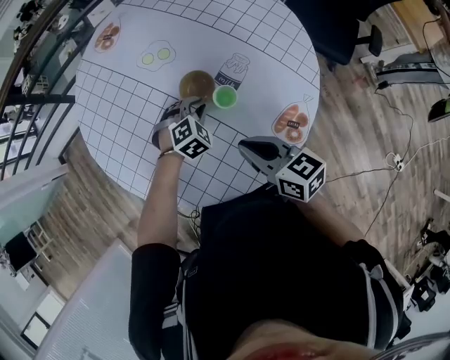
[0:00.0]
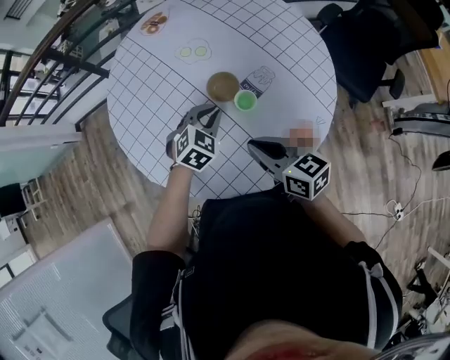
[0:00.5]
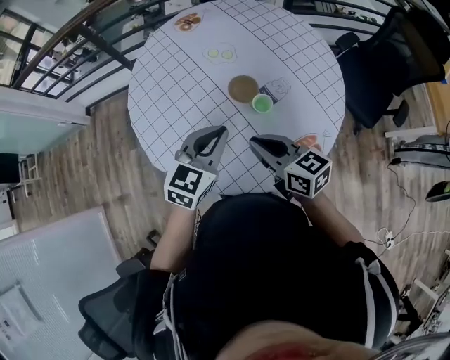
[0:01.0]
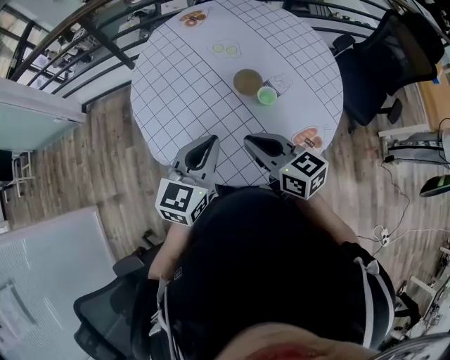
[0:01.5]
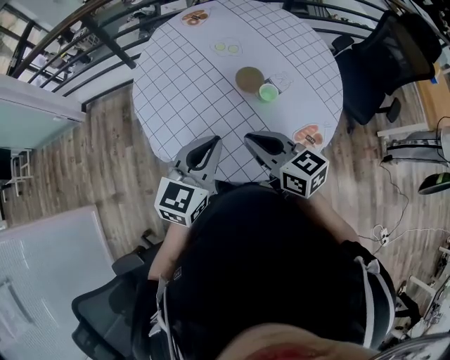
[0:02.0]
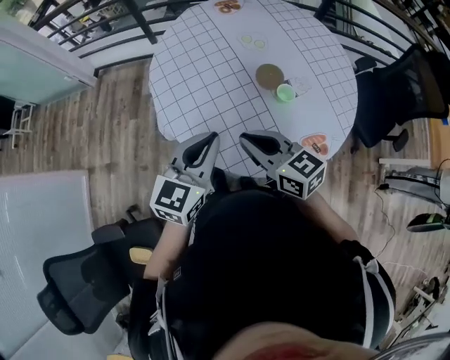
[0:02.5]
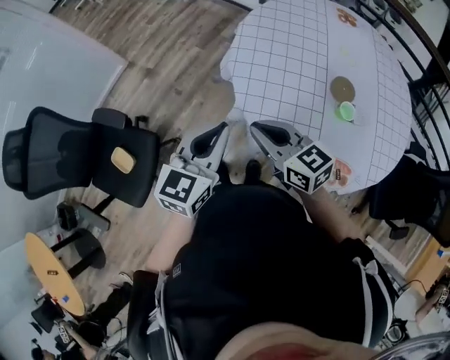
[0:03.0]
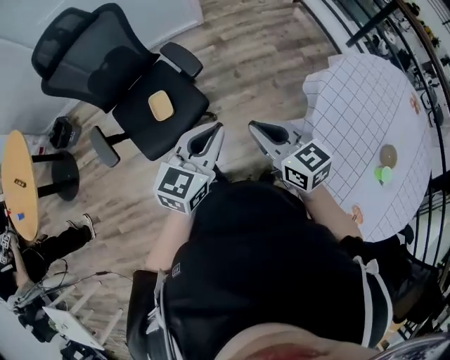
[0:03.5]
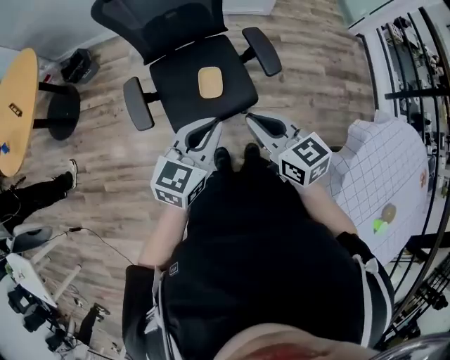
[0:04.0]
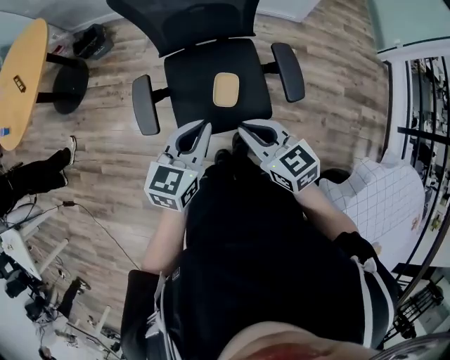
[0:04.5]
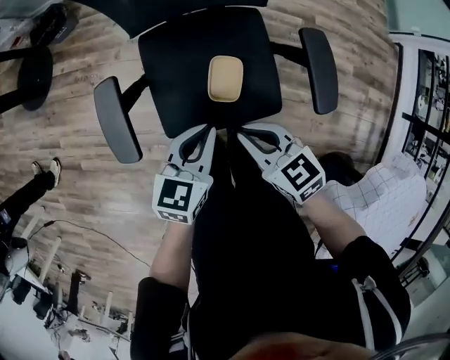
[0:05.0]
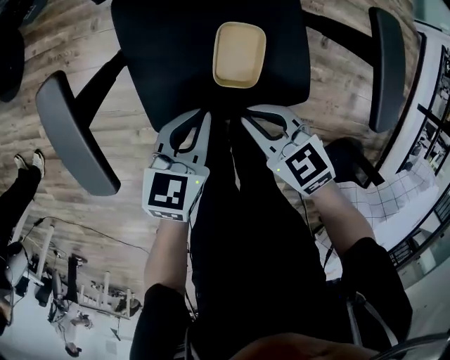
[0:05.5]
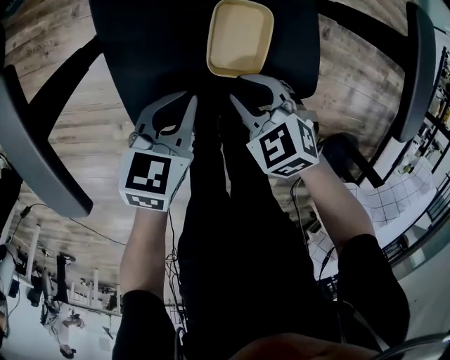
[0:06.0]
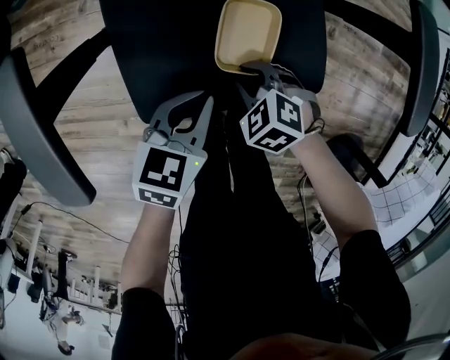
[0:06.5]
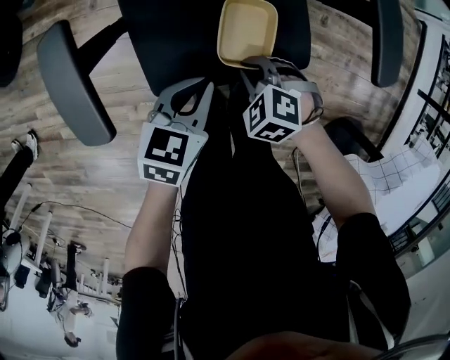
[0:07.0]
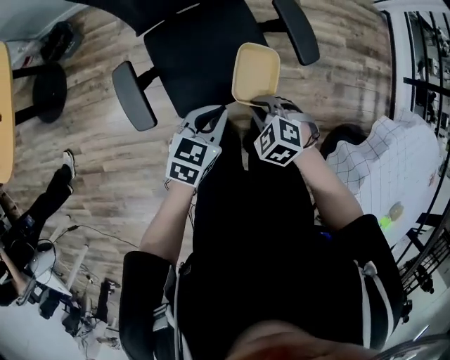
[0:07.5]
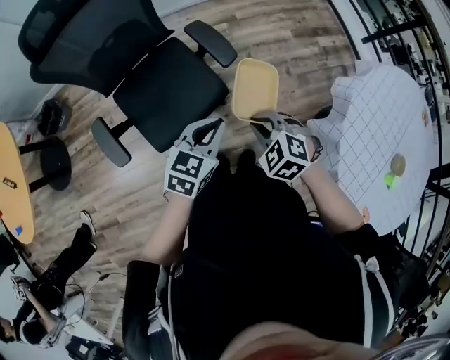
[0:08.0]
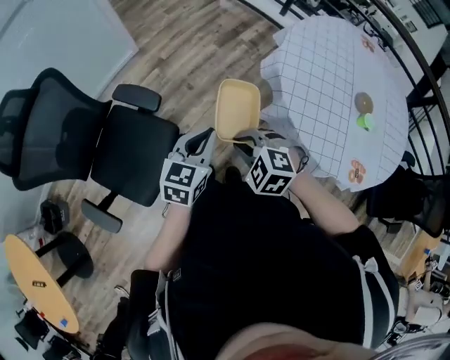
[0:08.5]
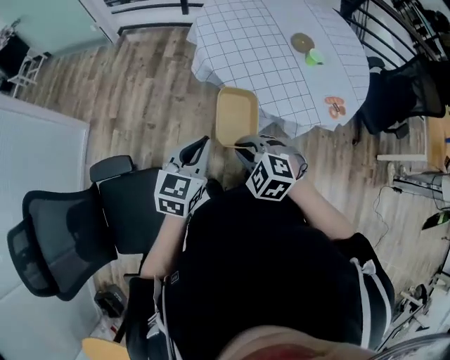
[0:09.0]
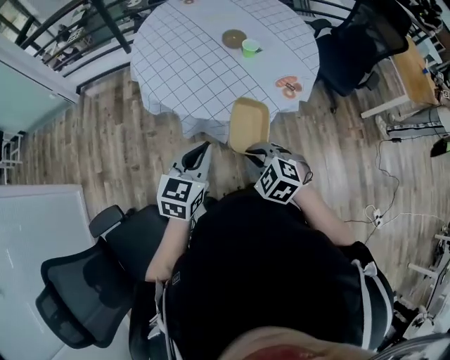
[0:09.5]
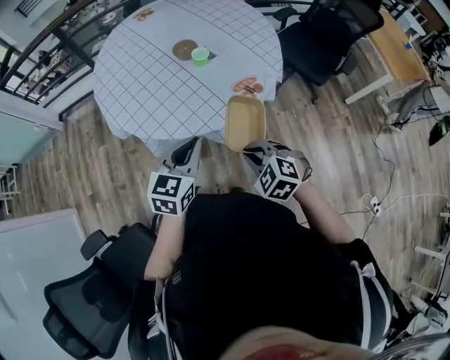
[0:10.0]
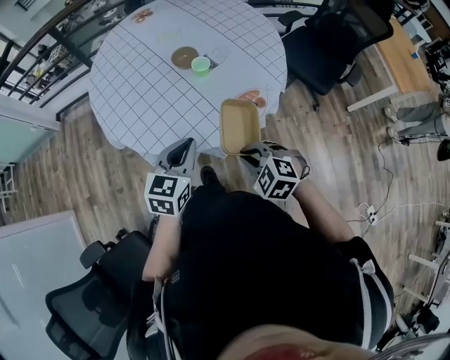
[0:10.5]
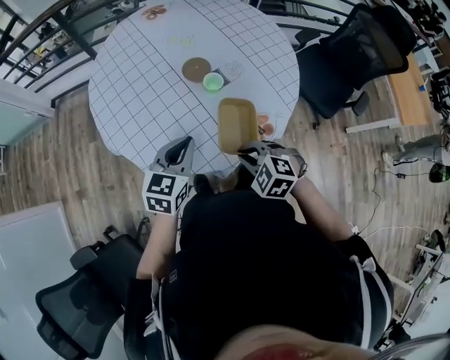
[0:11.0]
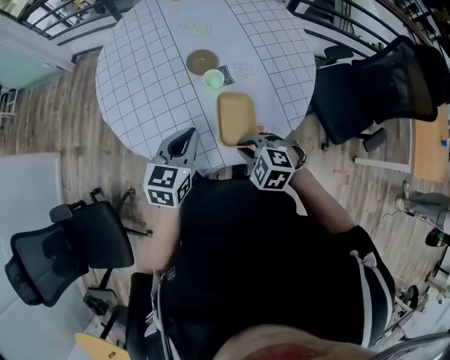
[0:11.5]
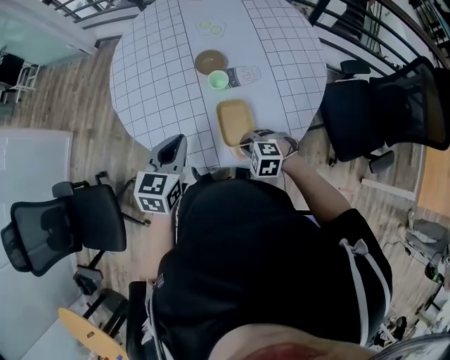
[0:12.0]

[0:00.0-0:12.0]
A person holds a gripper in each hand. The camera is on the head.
0:00.0 to 0:02.0: The right gripper shifts roughly 15 cm to the left, upward and backward, and changes its angle by approximately 20 degrees. The left gripper heads upward, backward and to the left, covering some 35 cm, and angles its fingers upward, by about 40 degrees.
0:02.0 to 0:04.0: The two grippers travel together, roughly 60 cm. The right gripper turns by approximately 100 degrees; the left gripper rotates some 100 degrees.
0:04.0 to 0:06.0: The two grippers go about 50 cm downward. The left gripper swivels roughly 30 degrees; the right gripper tips its fingers downward by about 40 degrees.
0:06.0 to 0:08.0: Both grippers travel together upward, some 40 cm. The right gripper turns by some 30 degrees, while the left gripper swivels some 40 degrees.
0:08.0 to 0:10.0: The pair of grippers is taken some 50 cm. The right gripper rotates around the line of its fingers by approximately 70 degrees, clockwise from behind. The left gripper changes its angle by about 80 degrees.
0:10.0 to 0:12.0: The right gripper moves some 30 cm, and rotates roughly 50 degrees. The left gripper shifts by roughly 20 cm, and changes its angle by about 40 degrees.

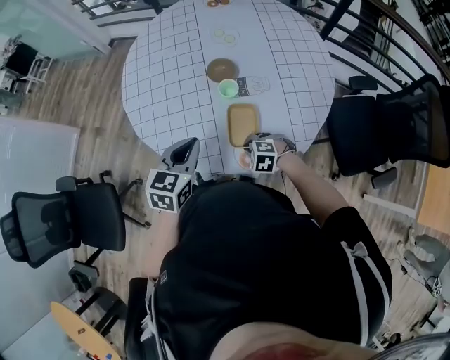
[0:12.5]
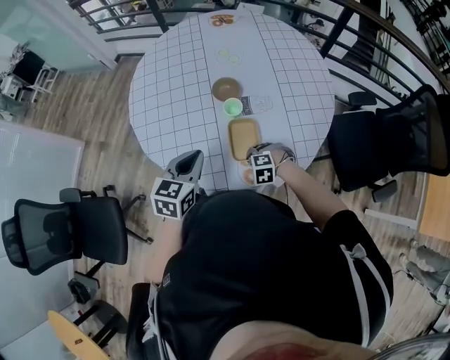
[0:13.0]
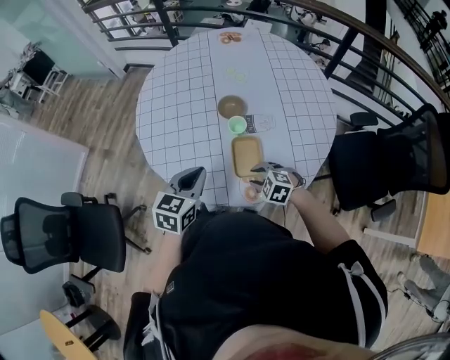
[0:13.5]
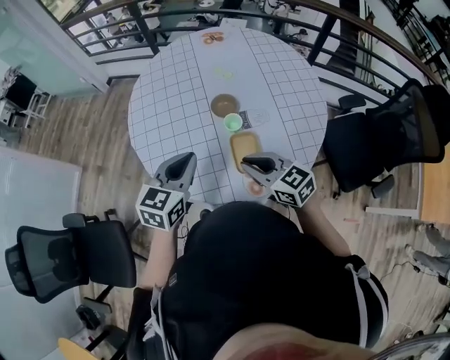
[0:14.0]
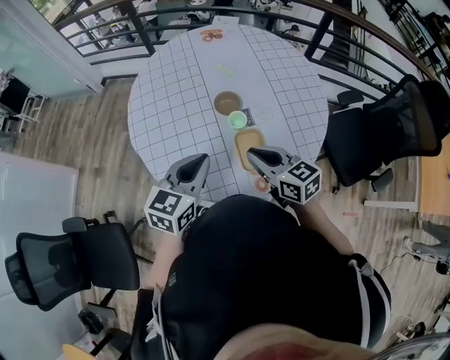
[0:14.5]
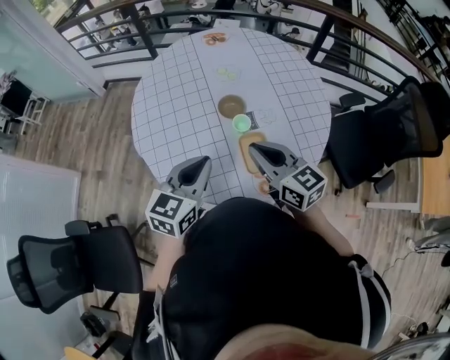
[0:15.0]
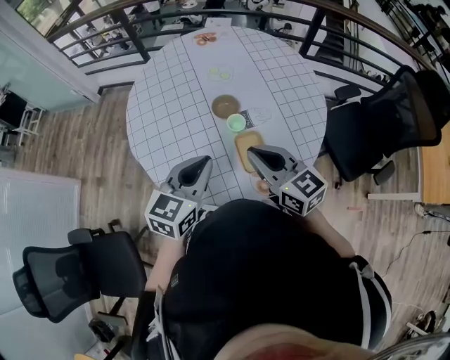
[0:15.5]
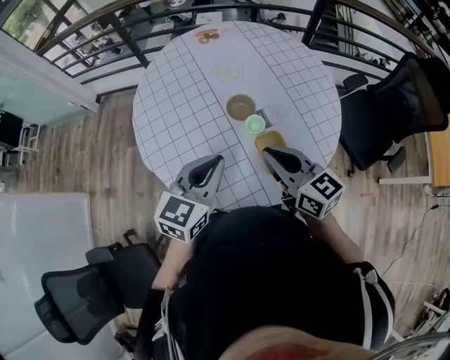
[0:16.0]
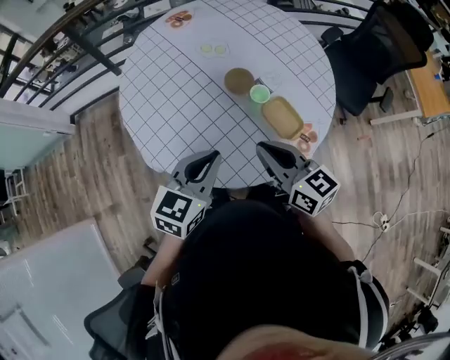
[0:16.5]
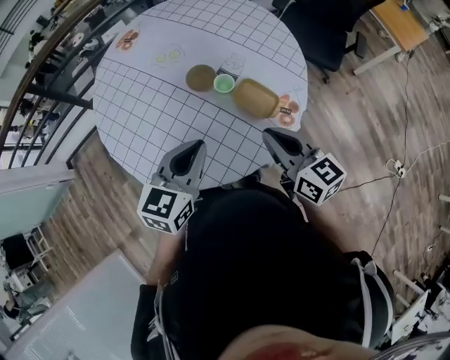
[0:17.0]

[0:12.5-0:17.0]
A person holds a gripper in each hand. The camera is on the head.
0:12.5 to 0:14.5: The right gripper travels upward by approximately 25 cm, tips its fingers upward by some 50 degrees, and opens and closes again. Meanwhile the left gripper shifts approximately 10 cm upward.
0:14.5 to 0:17.0: The left gripper moves about 10 cm, and turns by approximately 40 degrees. The right gripper rotates approximately 50 degrees.

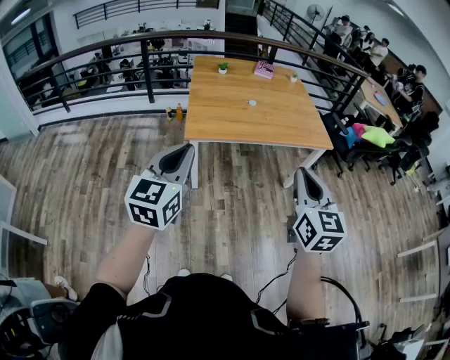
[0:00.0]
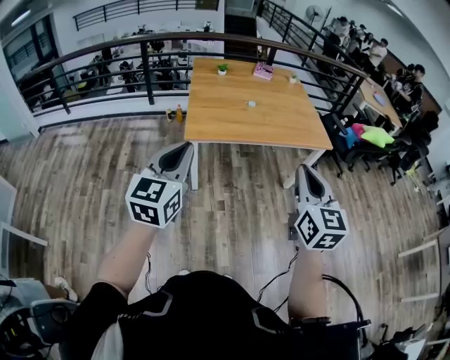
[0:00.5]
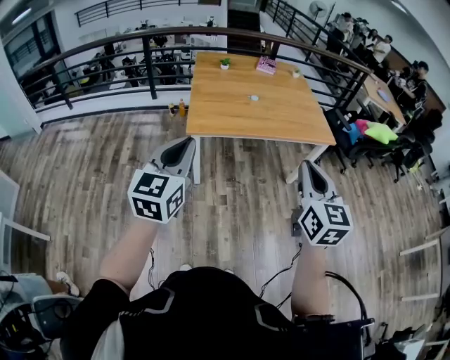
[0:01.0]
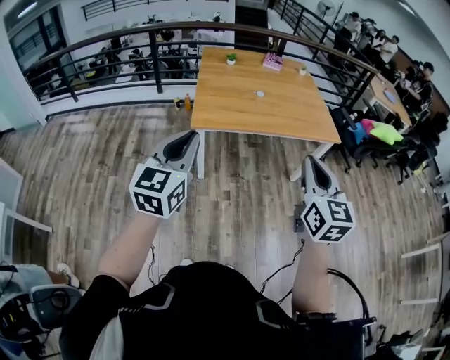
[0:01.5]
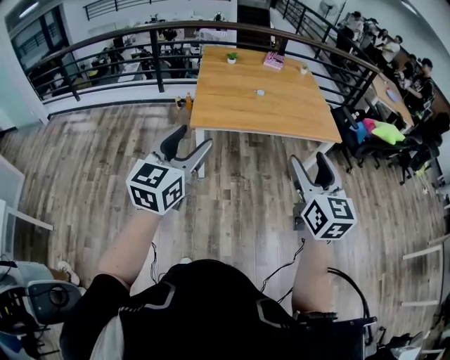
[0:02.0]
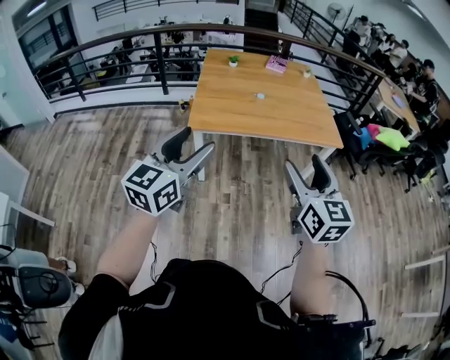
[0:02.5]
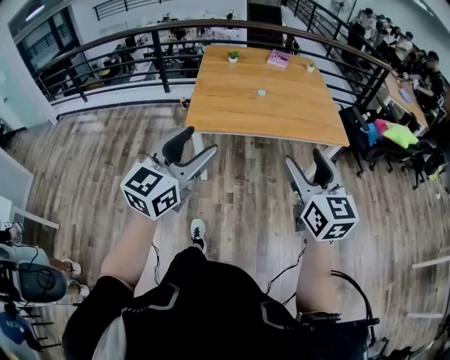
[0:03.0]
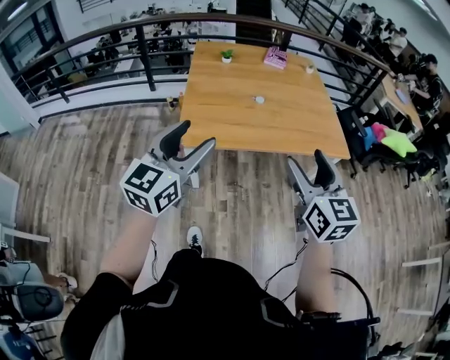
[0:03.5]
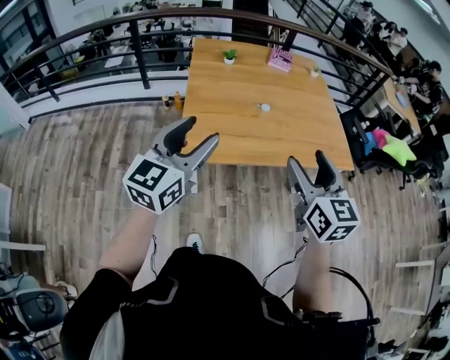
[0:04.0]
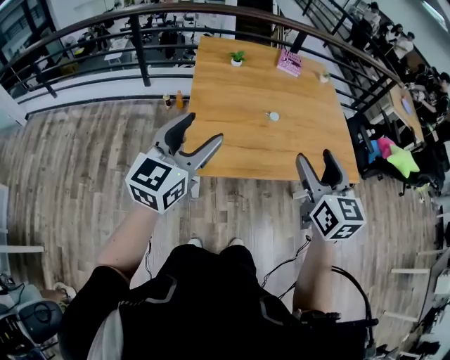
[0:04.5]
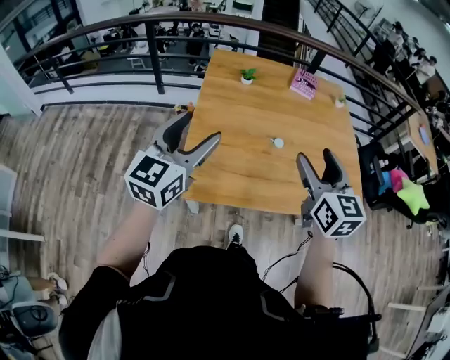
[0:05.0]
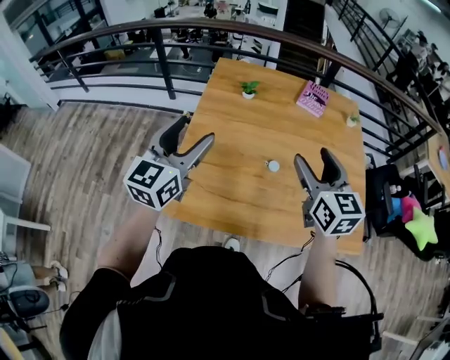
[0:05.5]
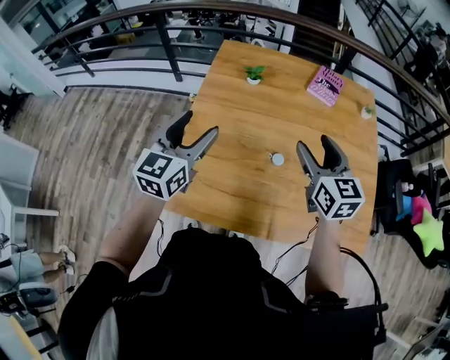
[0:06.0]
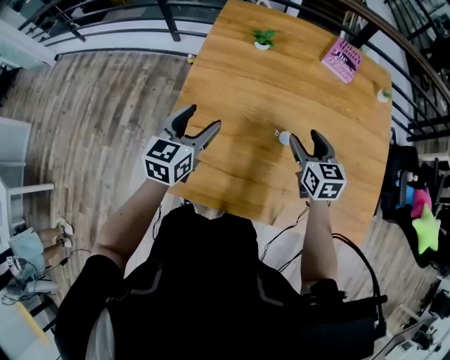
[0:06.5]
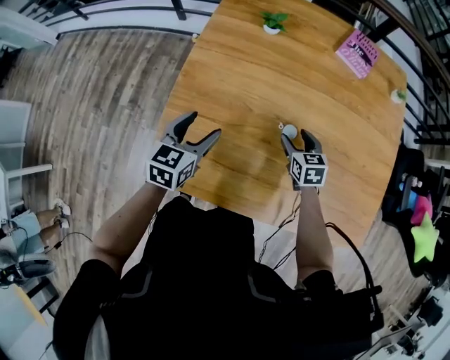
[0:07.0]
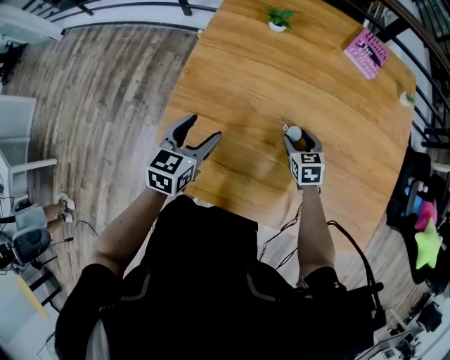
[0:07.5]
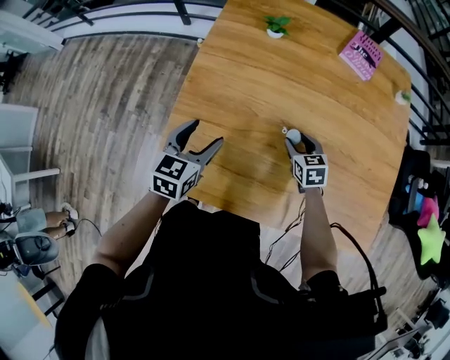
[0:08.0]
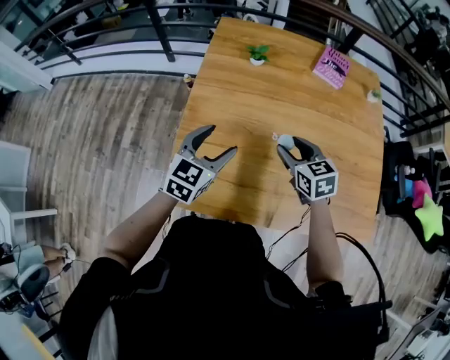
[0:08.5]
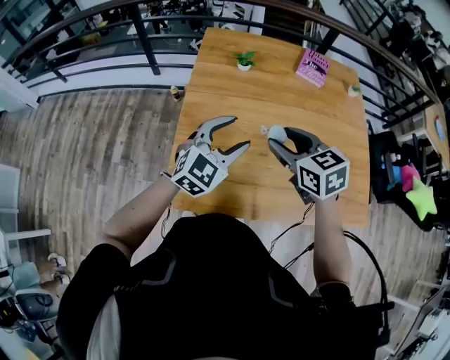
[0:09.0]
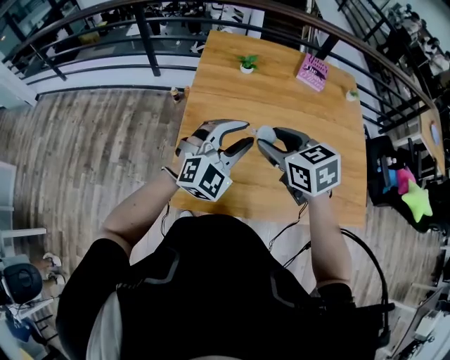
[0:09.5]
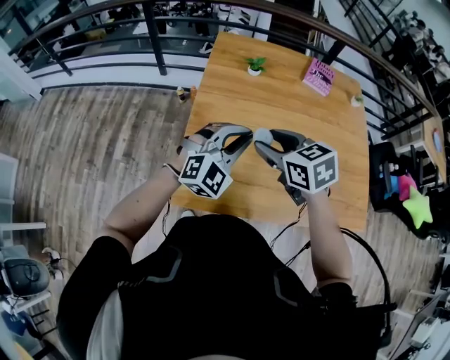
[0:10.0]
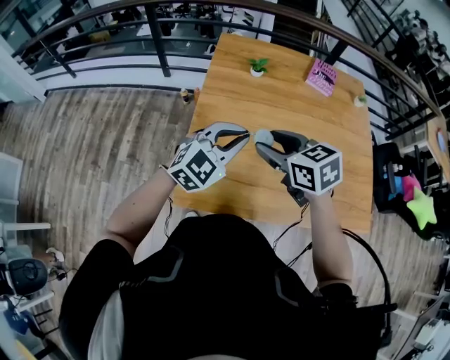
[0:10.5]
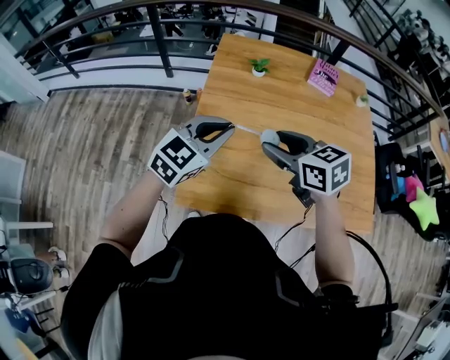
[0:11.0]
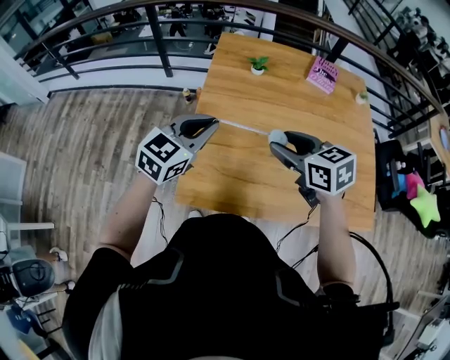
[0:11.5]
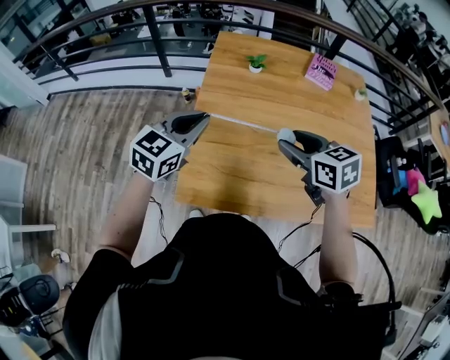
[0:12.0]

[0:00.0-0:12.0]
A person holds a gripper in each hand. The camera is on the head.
0:00.0 to 0:02.0: The right gripper opens. Meanwhile the left gripper opens up.
0:02.0 to 0:04.0: The two grippers go roughly 30 cm forward.
0:04.0 to 0:06.0: Both grippers move forward, some 40 cm. The left gripper swivels about 20 degrees.
0:06.0 to 0:08.0: The right gripper shifts about 30 cm downward, and tilts its fingers some 30 degrees downward; the left gripper is displaced downward by about 20 cm, and changes its angle by about 20 degrees.
0:08.0 to 0:10.0: The right gripper moves upward and to the left, roughly 35 cm; the left gripper heads upward, covering roughly 15 cm, twists about 60 degrees clockwise, seen from behind, and closes up.
0:10.0 to 0:12.0: The left gripper goes roughly 10 cm to the left, and rolls counterclockwise, seen from behind, by approximately 40 degrees. The right gripper travels to the right by about 5 cm.
